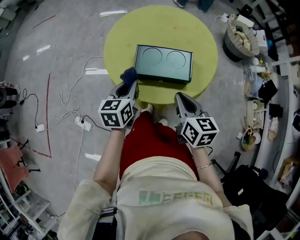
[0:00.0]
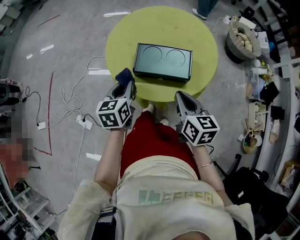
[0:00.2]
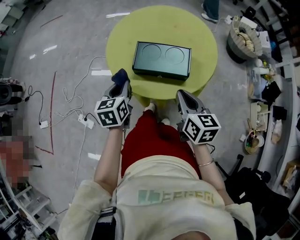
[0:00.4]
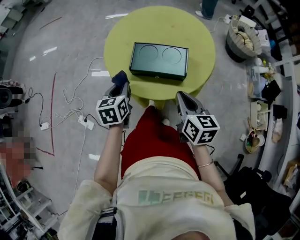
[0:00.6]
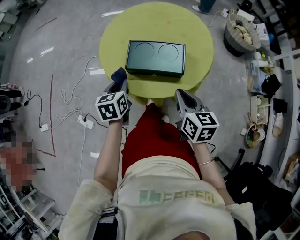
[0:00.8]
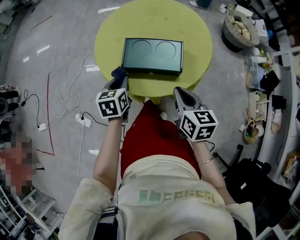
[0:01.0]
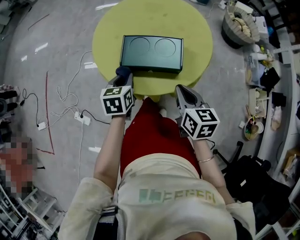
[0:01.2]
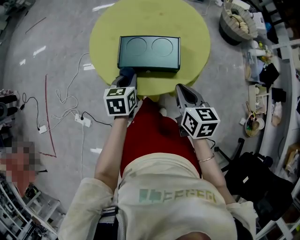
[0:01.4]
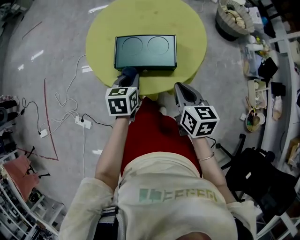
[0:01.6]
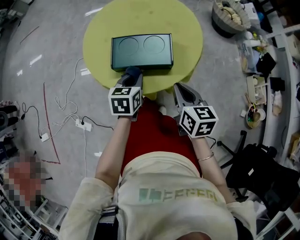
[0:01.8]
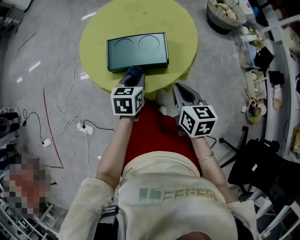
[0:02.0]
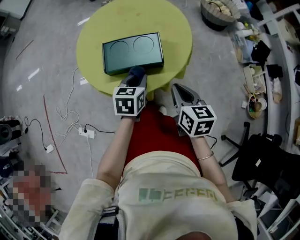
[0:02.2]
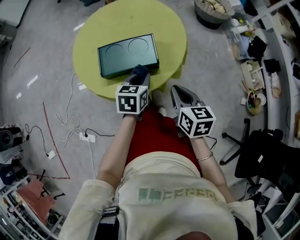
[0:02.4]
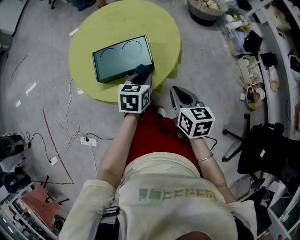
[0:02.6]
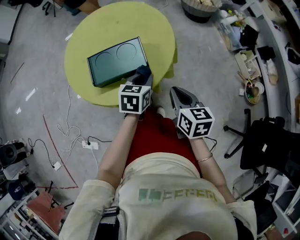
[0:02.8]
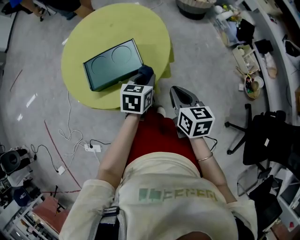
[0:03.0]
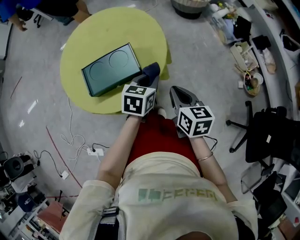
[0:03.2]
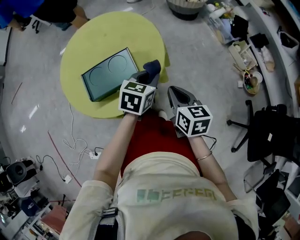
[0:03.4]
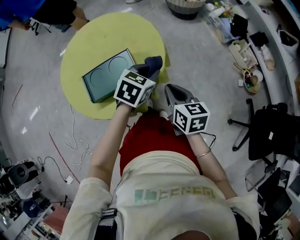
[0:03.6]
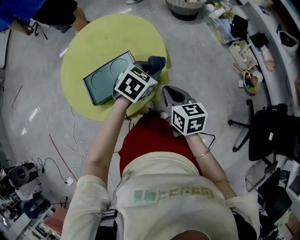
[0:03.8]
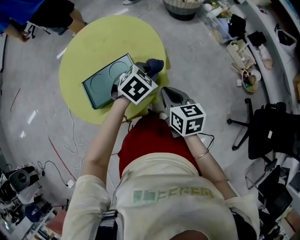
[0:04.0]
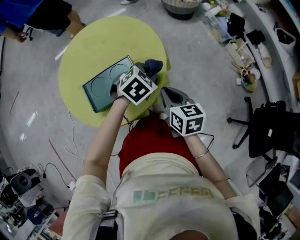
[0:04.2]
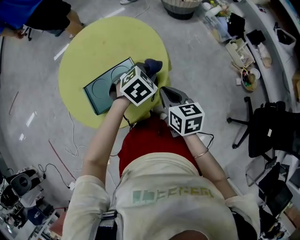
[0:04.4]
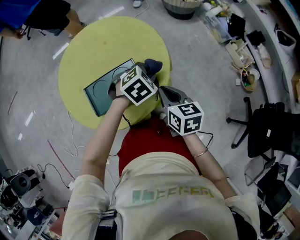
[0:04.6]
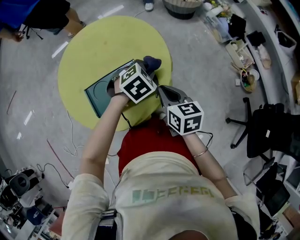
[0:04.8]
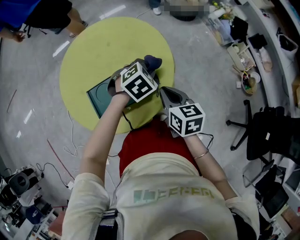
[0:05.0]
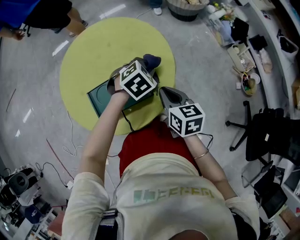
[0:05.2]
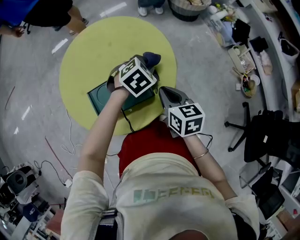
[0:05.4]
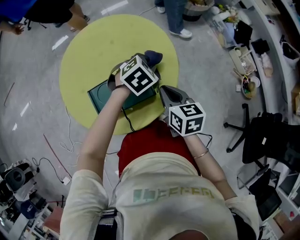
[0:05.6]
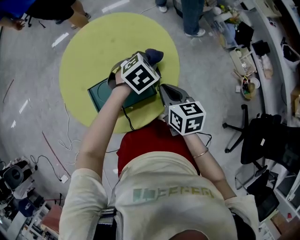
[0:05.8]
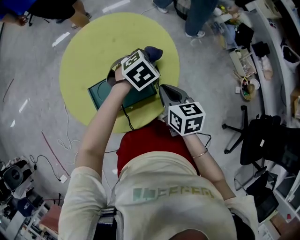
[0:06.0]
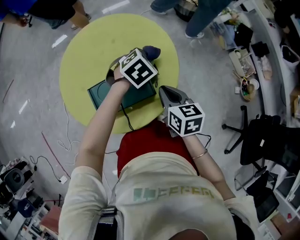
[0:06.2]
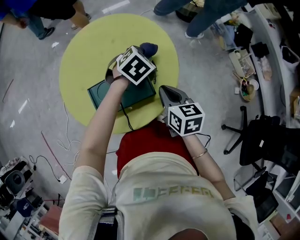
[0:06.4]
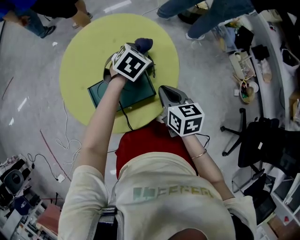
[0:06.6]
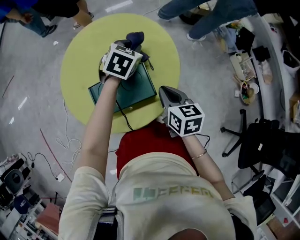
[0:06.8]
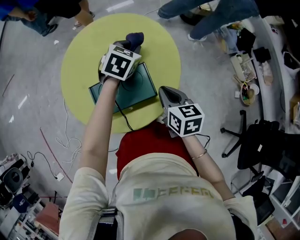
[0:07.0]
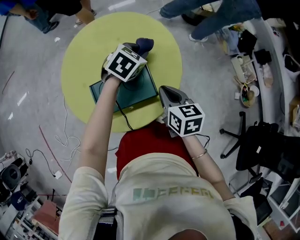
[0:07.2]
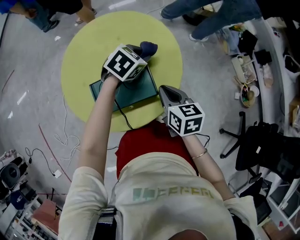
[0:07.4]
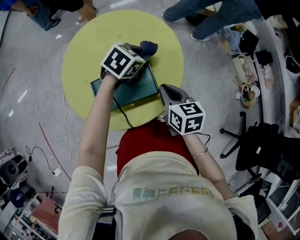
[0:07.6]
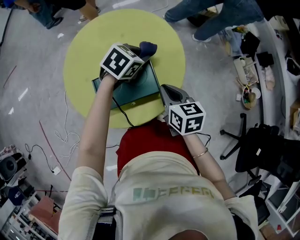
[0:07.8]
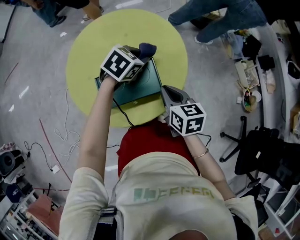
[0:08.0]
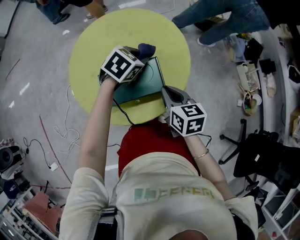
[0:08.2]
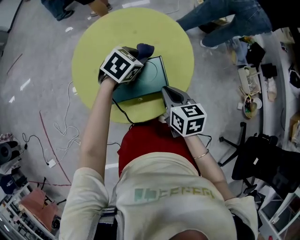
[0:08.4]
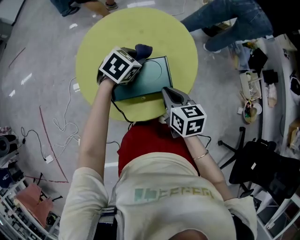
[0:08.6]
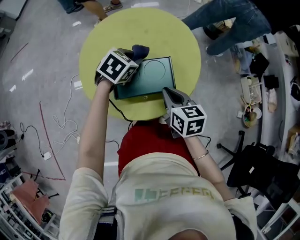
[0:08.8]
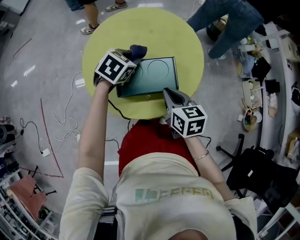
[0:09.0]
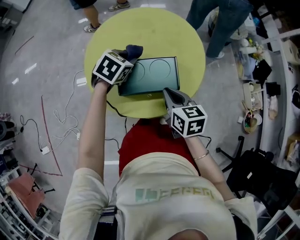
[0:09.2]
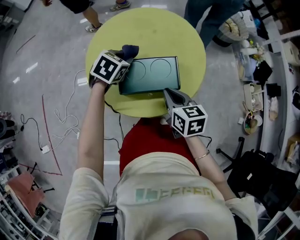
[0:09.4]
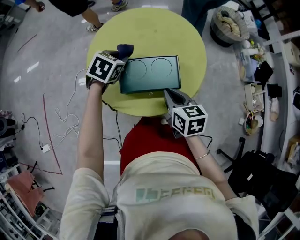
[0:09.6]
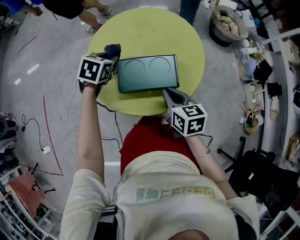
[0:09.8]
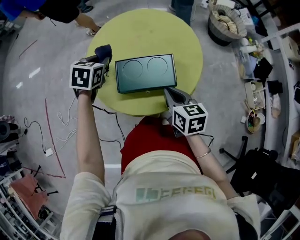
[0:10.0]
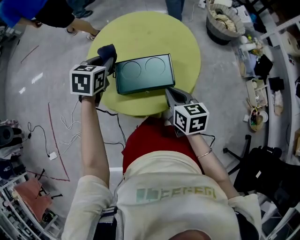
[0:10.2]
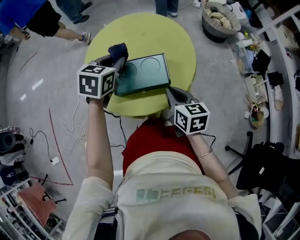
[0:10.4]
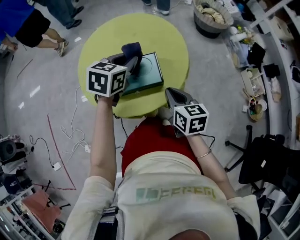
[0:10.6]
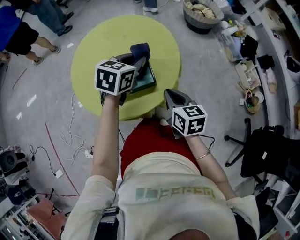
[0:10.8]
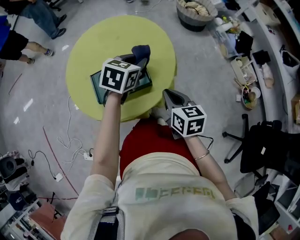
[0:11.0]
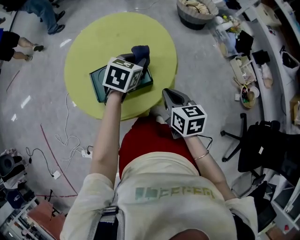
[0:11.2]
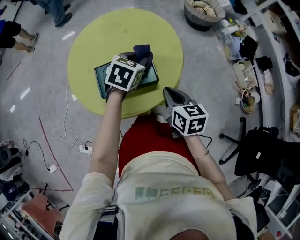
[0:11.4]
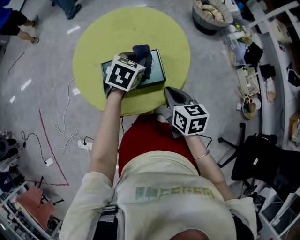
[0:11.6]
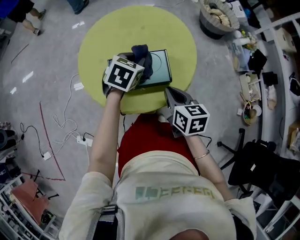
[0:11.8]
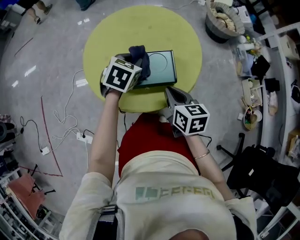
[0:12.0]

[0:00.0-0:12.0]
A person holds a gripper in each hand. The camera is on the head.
0:00.0 to 0:01.6: The right gripper heads to the right, covering some 5 cm. The left gripper moves to the right and downward, approximately 10 cm.
0:01.6 to 0:03.0: The left gripper moves to the right, roughly 20 cm, and changes its angle by roughly 30 degrees. The right gripper goes approximately 10 cm to the right.
0:03.0 to 0:04.4: The left gripper travels forward by some 5 cm, and twists roughly 40 degrees clockwise, seen from behind, while the right gripper goes roughly 10 cm to the left and forward.
0:04.4 to 0:06.0: The right gripper goes approximately 10 cm to the left and forward, while the left gripper is displaced forward and to the left by some 10 cm.
0:07.6 to 0:09.0: The left gripper travels to the left and backward by approximately 15 cm. Meanwhile the right gripper heads to the left and backward, covering about 10 cm.
0:09.0 to 0:10.4: The right gripper shifts by about 5 cm; the left gripper is displaced upward by roughly 10 cm, reaches roughly 10 cm to the left, then returns, and turns by about 20 degrees.
0:10.4 to 0:12.0: The left gripper goes roughly 10 cm downward, and travels to the right and back again, approximately 15 cm each way. The right gripper travels to the right and back again, about 5 cm each way.

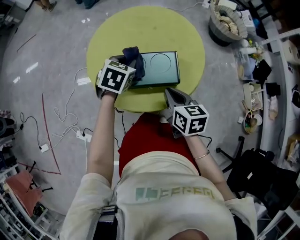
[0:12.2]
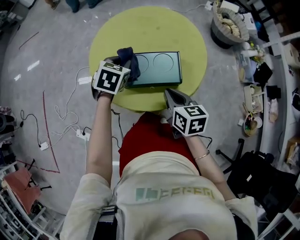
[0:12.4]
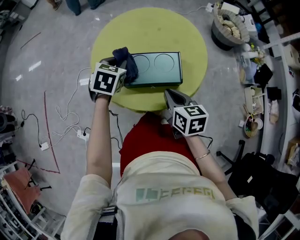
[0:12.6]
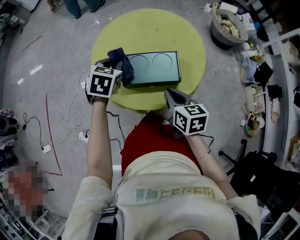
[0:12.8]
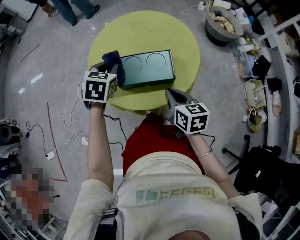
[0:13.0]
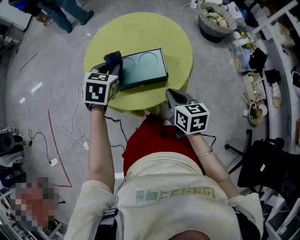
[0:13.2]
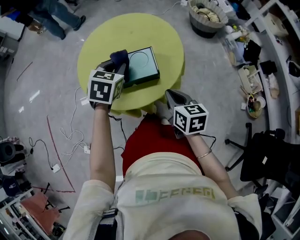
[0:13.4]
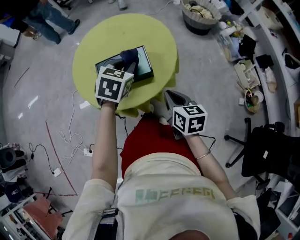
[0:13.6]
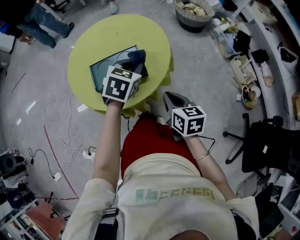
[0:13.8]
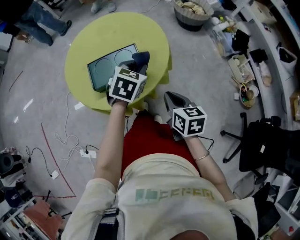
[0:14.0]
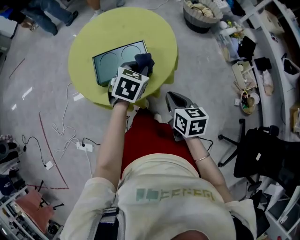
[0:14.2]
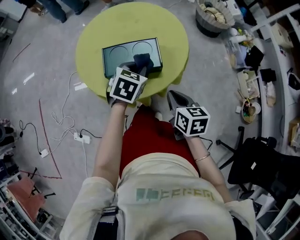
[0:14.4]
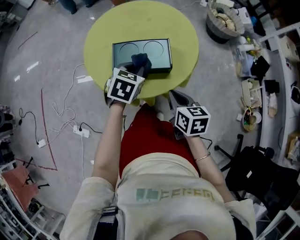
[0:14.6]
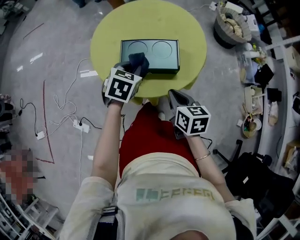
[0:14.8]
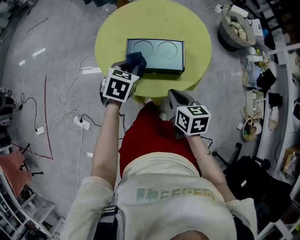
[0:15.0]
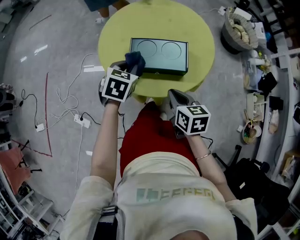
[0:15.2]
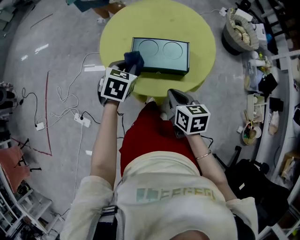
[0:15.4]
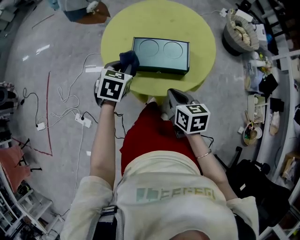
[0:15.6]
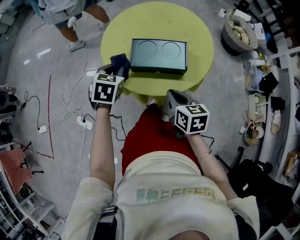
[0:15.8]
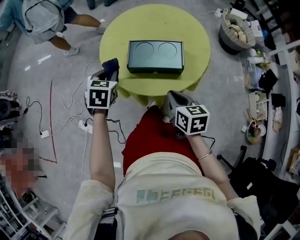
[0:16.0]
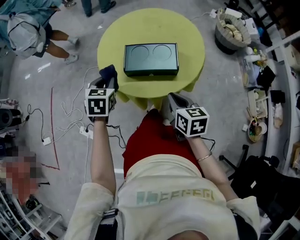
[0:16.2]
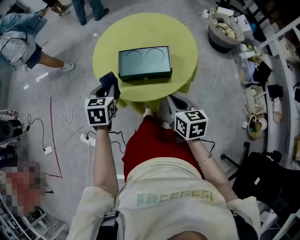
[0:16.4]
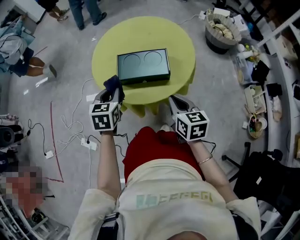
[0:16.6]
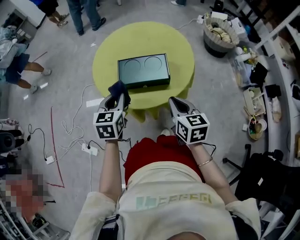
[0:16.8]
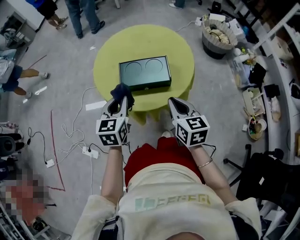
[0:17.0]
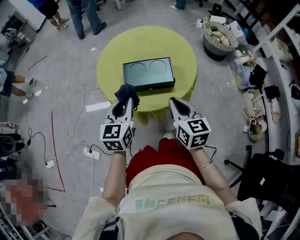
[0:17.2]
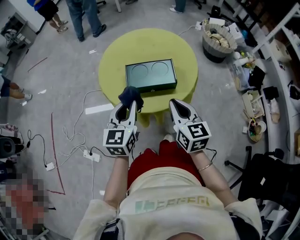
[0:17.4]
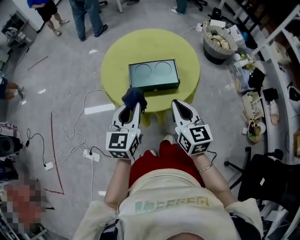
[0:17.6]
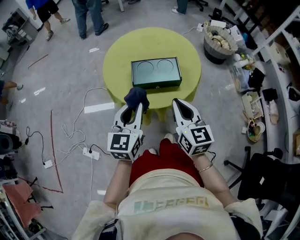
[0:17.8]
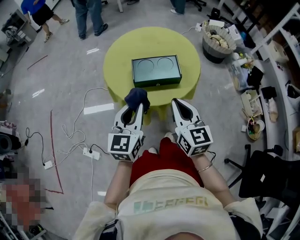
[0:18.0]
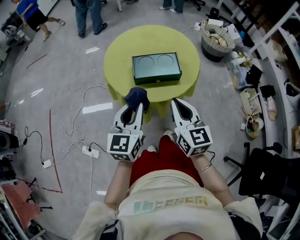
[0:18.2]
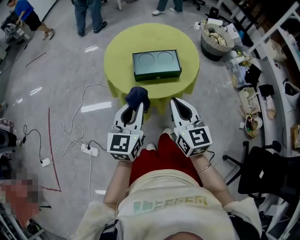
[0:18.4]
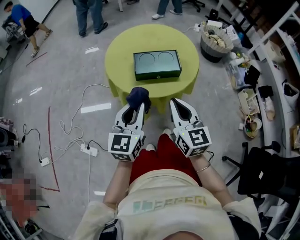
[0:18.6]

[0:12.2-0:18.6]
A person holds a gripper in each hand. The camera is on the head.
0:12.2 to 0:13.8: Both grippers move to the right and backward, roughly 20 cm.
0:13.8 to 0:15.4: The left gripper moves about 20 cm, and rotates some 30 degrees; the right gripper moves about 10 cm, and swivels about 20 degrees.
0:15.4 to 0:17.0: The right gripper travels upward by about 5 cm. Meanwhile the left gripper heads backward and upward, covering roughly 10 cm, and swivels approximately 20 degrees.
0:17.0 to 0:18.6: The left gripper moves backward and upward, about 15 cm. The right gripper is displaced backward, to the left and upward by approximately 15 cm.

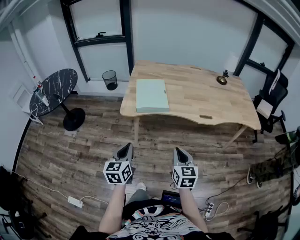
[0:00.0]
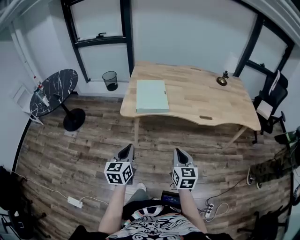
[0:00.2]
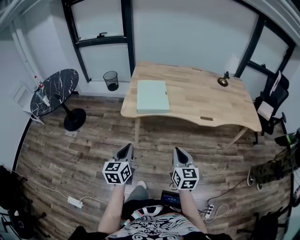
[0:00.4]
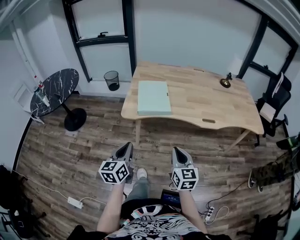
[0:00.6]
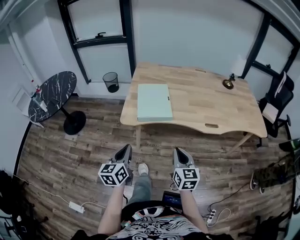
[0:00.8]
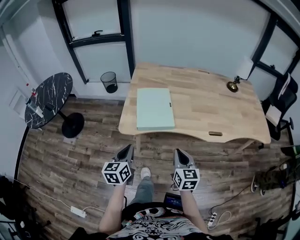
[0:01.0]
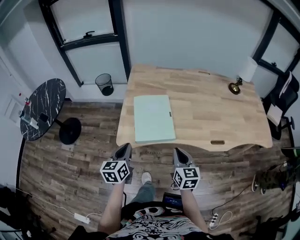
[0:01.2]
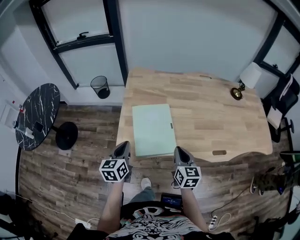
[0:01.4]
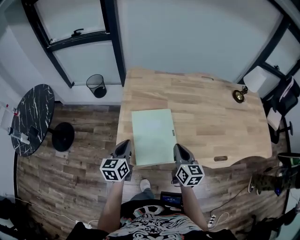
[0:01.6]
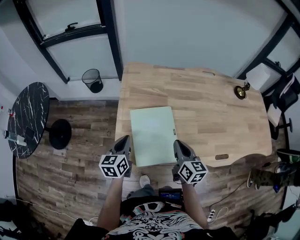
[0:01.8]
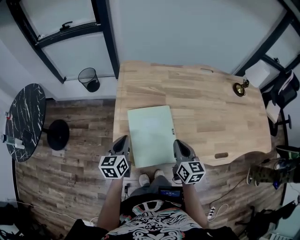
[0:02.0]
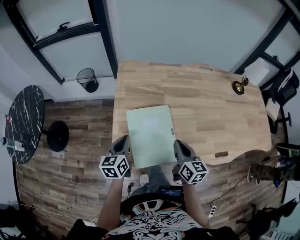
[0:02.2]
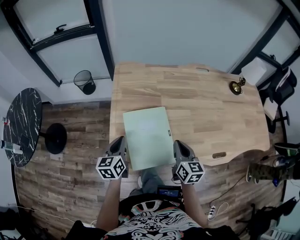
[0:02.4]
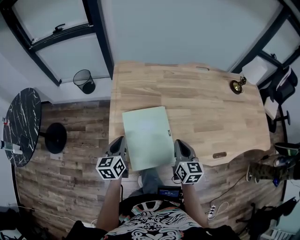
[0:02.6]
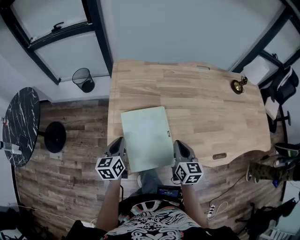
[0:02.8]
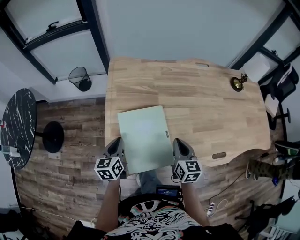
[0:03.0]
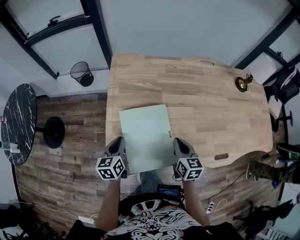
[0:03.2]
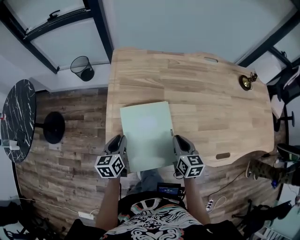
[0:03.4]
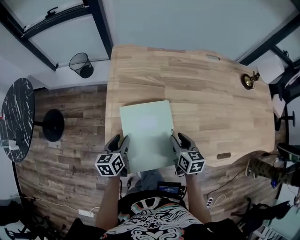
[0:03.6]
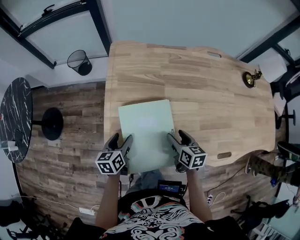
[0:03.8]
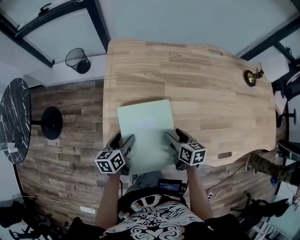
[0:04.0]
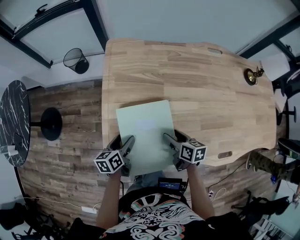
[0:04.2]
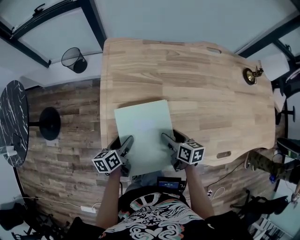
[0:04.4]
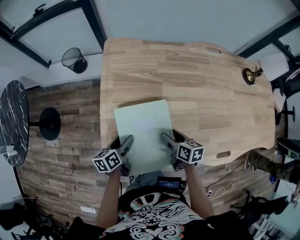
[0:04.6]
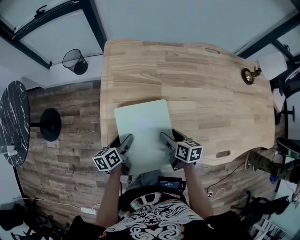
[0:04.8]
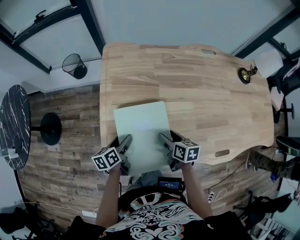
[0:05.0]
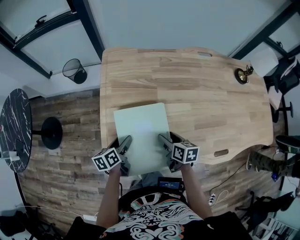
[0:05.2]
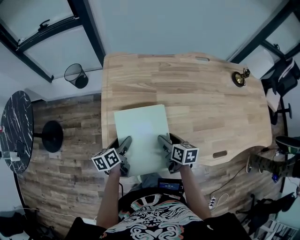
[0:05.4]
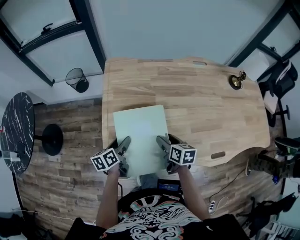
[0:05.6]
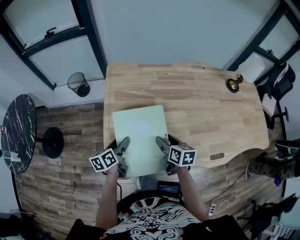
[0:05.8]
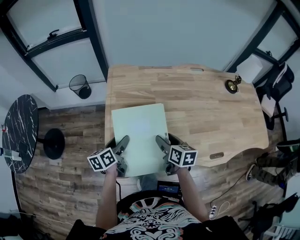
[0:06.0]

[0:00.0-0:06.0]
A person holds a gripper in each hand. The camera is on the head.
0:00.0 to 0:01.6: The two grippers travel together, forward, about 40 cm.
0:01.6 to 0:03.0: The left gripper shifts some 10 cm downward and forward. Meanwhile the right gripper travels forward by roughly 5 cm.
0:03.0 to 0:04.4: Both grippers travel together downward, some 10 cm. The right gripper rotates about 30 degrees, and opens up. Meanwhile the left gripper changes its angle by about 30 degrees, and opens.
0:04.4 to 0:06.0: The grippers both shift upward by some 10 cm.
